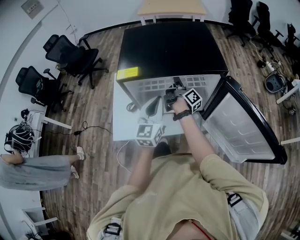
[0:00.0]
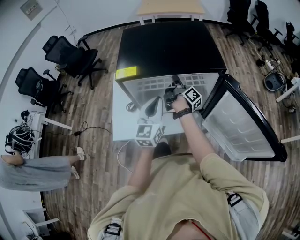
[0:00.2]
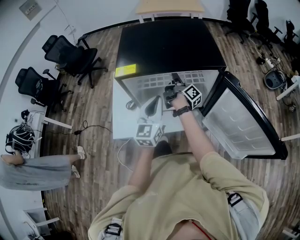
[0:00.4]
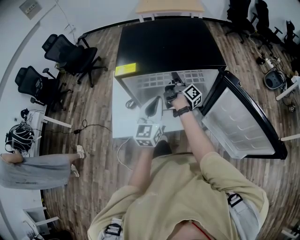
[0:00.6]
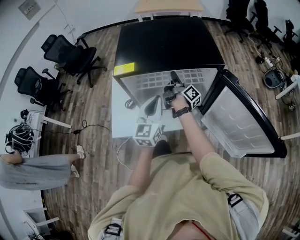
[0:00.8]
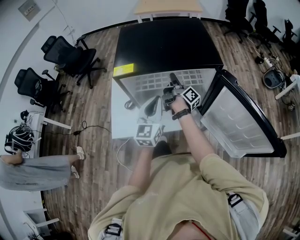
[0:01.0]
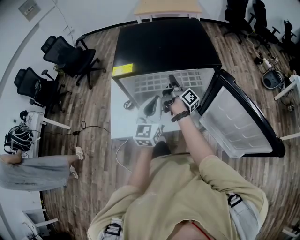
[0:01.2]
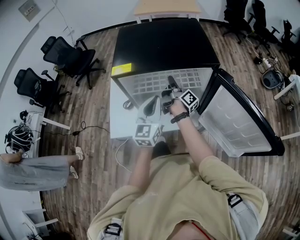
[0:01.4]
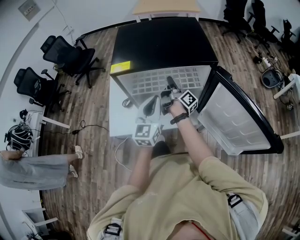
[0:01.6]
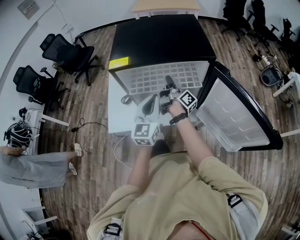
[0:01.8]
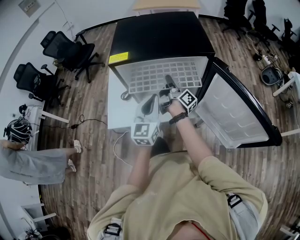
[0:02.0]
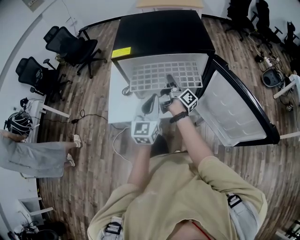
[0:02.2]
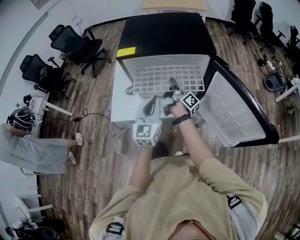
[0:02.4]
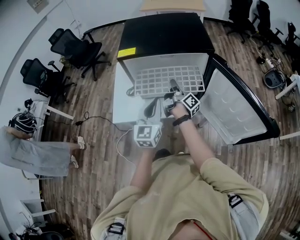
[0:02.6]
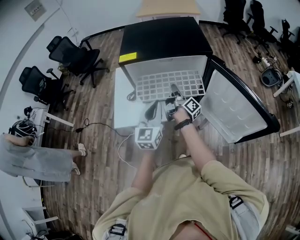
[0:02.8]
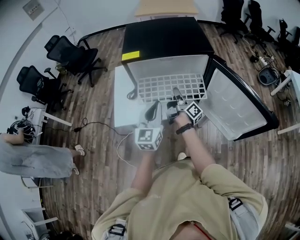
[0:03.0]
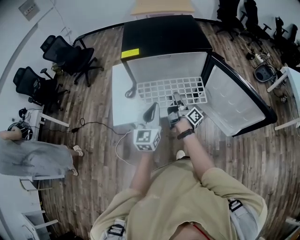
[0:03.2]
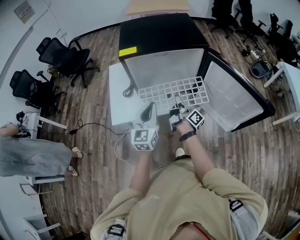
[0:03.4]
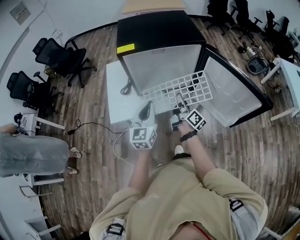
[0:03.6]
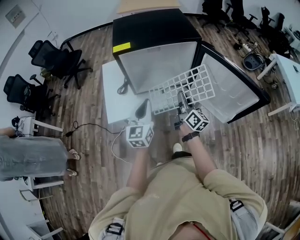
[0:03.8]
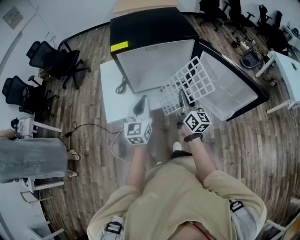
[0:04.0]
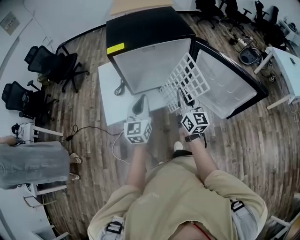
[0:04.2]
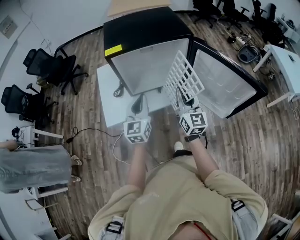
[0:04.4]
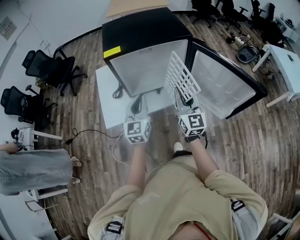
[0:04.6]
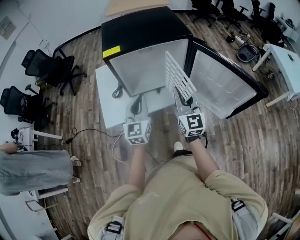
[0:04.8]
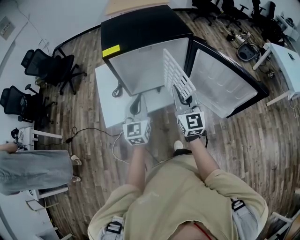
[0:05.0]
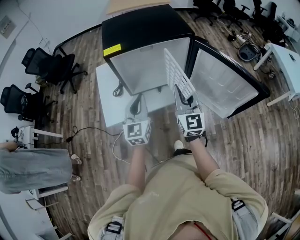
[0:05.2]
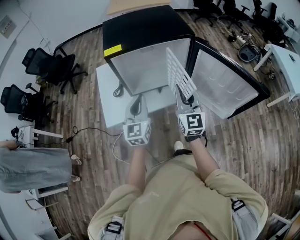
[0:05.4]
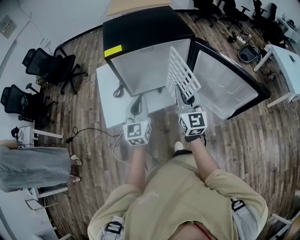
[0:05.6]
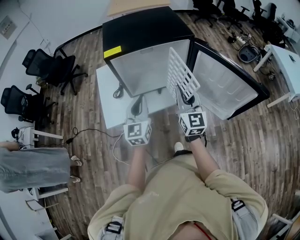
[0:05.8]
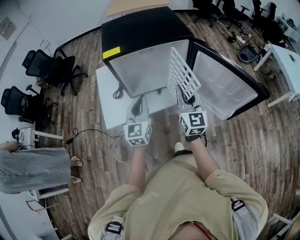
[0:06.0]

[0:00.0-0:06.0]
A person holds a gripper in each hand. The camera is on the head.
0:00.0 to 0:01.6: The right gripper shifts approximately 5 cm backward.
0:01.6 to 0:03.0: Both grippers travel together backward, some 15 cm.
0:03.0 to 0:04.4: The right gripper is displaced backward and upward by approximately 15 cm, and rolls counterclockwise, seen from behind, by some 80 degrees.
0:04.4 to 0:06.0: There are only small adjustments of the grippers.

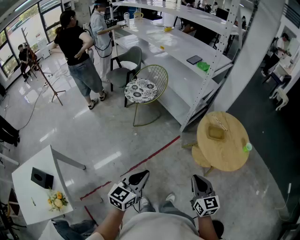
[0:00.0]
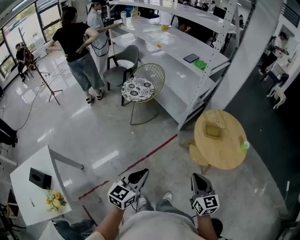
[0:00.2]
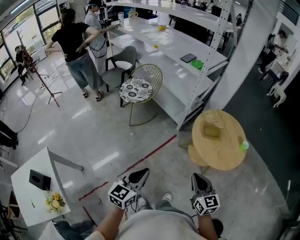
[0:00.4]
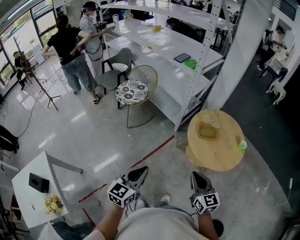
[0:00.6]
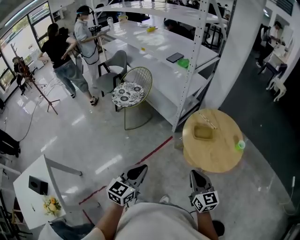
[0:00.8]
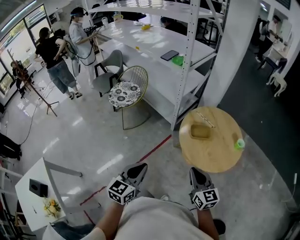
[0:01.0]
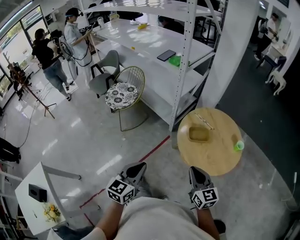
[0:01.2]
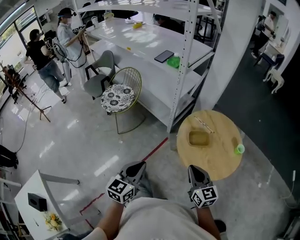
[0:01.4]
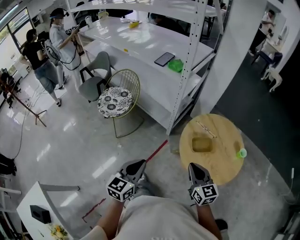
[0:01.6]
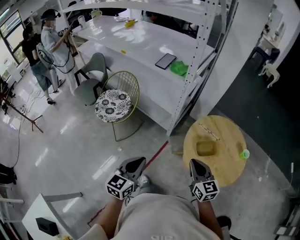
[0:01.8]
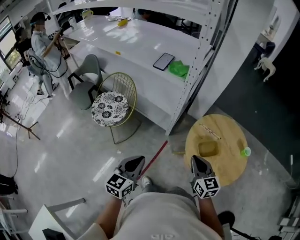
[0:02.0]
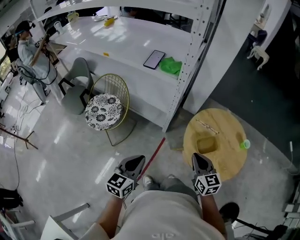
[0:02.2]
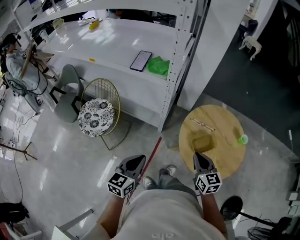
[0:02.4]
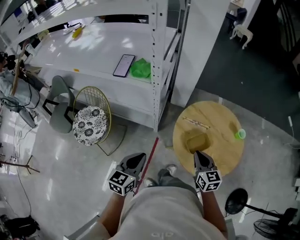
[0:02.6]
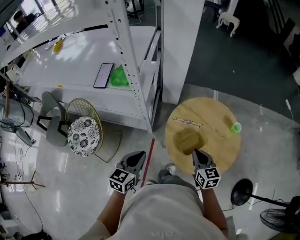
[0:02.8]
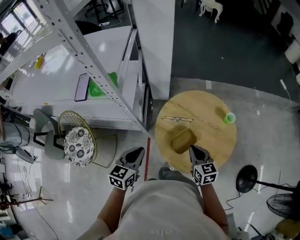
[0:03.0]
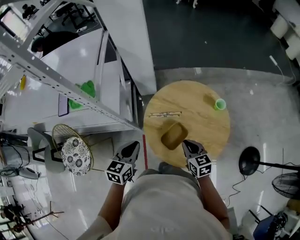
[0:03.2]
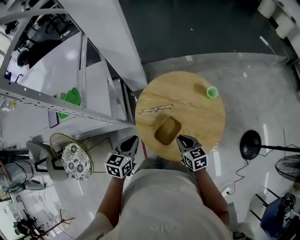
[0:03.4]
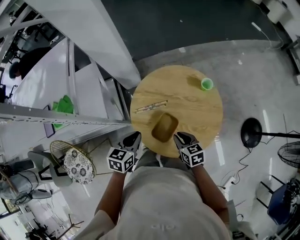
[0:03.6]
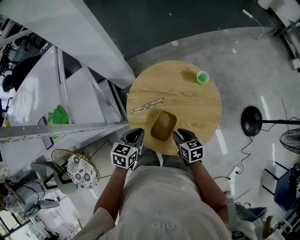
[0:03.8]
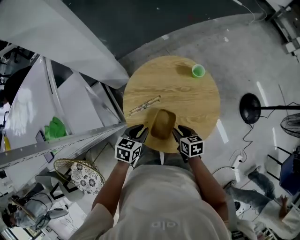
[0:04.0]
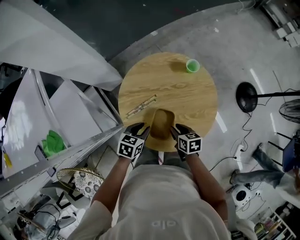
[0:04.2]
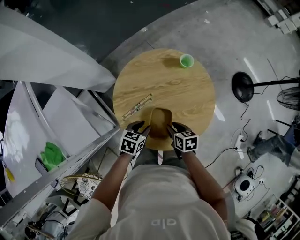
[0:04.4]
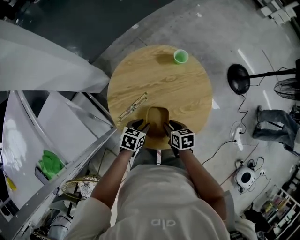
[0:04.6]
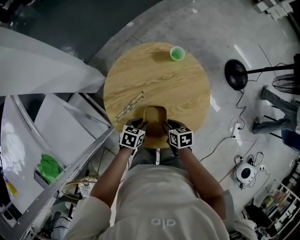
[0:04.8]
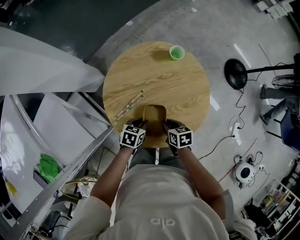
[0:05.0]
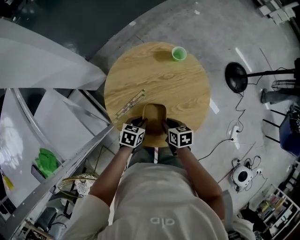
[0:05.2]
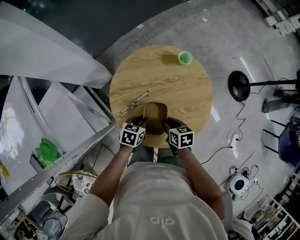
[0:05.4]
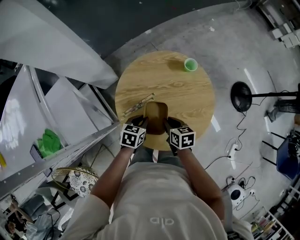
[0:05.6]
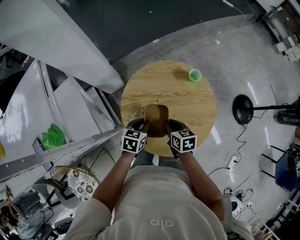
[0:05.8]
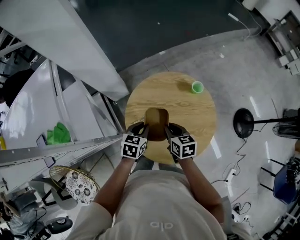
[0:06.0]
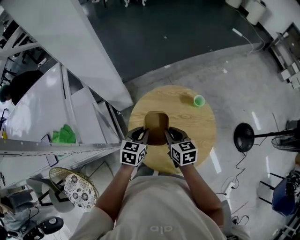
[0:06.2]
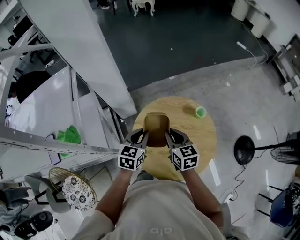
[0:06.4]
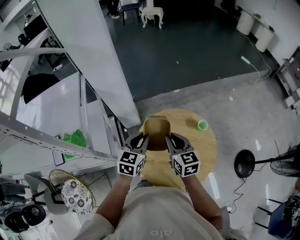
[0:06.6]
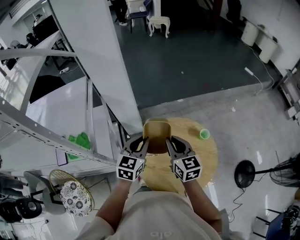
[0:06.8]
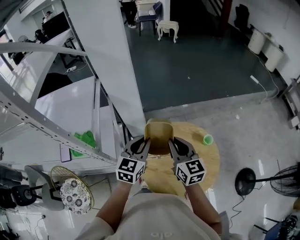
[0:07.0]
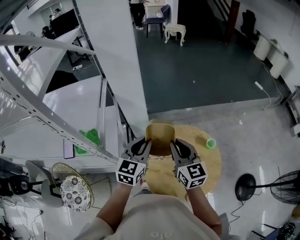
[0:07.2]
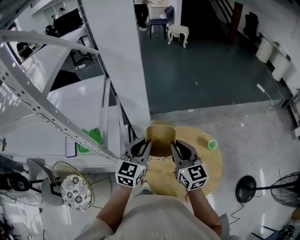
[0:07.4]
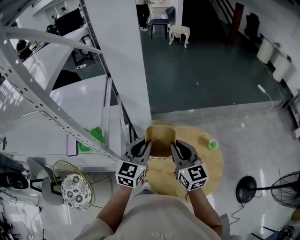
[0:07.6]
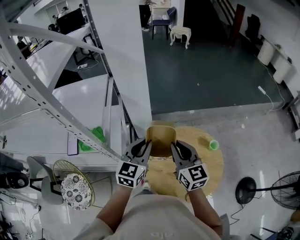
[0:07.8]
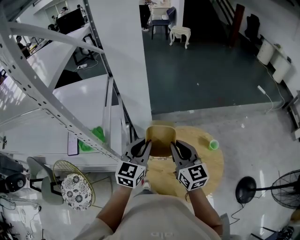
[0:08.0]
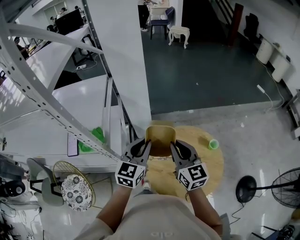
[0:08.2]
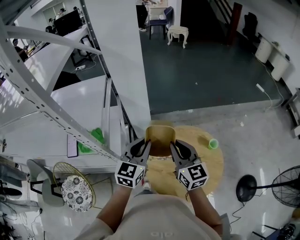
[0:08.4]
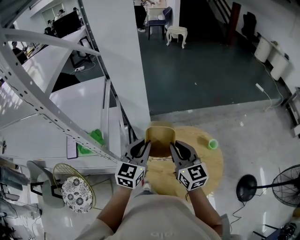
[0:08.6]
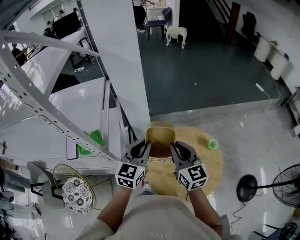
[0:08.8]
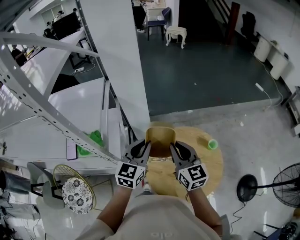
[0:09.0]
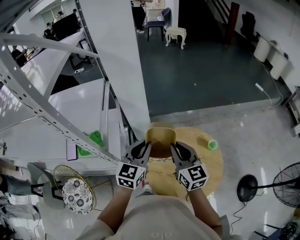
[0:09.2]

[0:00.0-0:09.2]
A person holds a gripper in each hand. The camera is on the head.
0:00.0 to 0:01.6: The grippers both shift forward by some 30 cm.
0:01.6 to 0:03.0: The right gripper changes place by roughly 25 cm, and changes its angle by about 40 degrees. The left gripper changes place by some 35 cm, and changes its angle by roughly 40 degrees.
0:03.0 to 0:04.6: Both grippers move downward, about 20 cm. The right gripper twists roughly 50 degrees clockwise, seen from behind, and opens its fingers. The left gripper changes its angle by approximately 60 degrees, and opens.
0:04.6 to 0:06.2: The left gripper goes some 20 cm upward, and changes its angle by roughly 40 degrees, while the right gripper travels upward, forward and to the left by roughly 20 cm, and changes its angle by about 30 degrees.
0:06.2 to 0:07.6: The right gripper shifts approximately 20 cm upward, and swivels some 30 degrees. Meanwhile the left gripper shifts about 25 cm upward and to the left, and rotates approximately 30 degrees.
0:07.6 to 0:09.2: Neither gripper changes place.

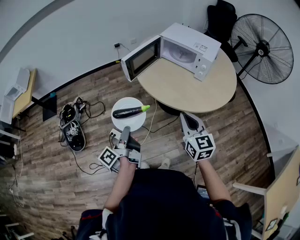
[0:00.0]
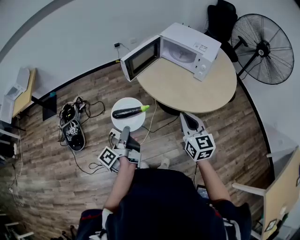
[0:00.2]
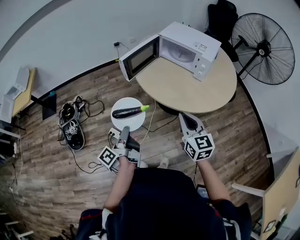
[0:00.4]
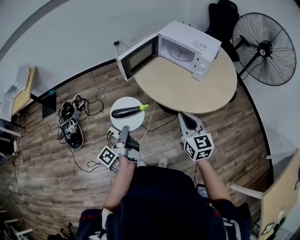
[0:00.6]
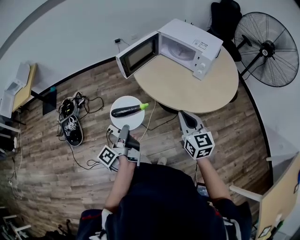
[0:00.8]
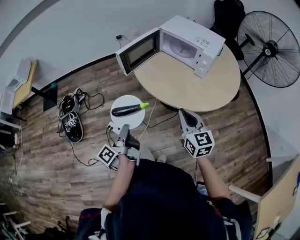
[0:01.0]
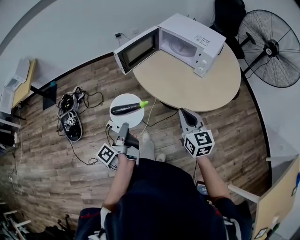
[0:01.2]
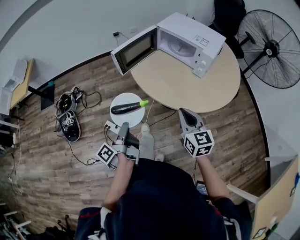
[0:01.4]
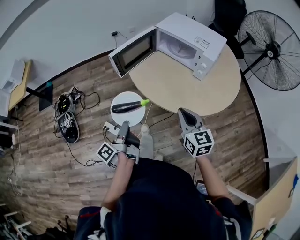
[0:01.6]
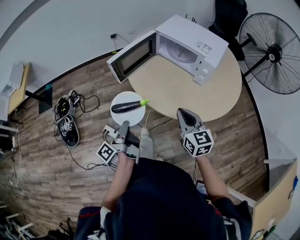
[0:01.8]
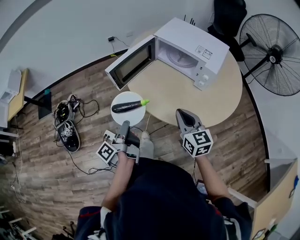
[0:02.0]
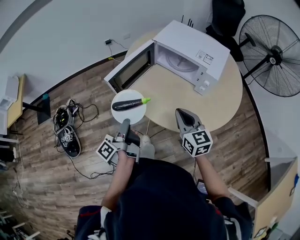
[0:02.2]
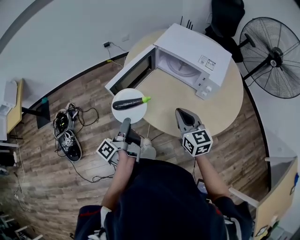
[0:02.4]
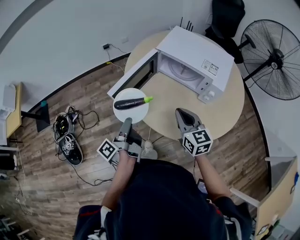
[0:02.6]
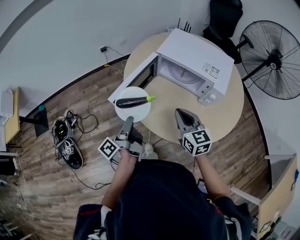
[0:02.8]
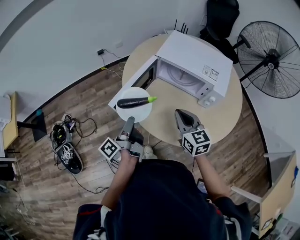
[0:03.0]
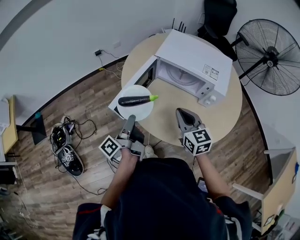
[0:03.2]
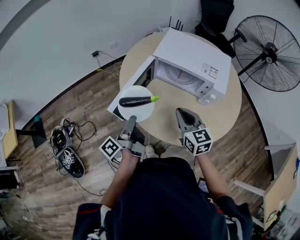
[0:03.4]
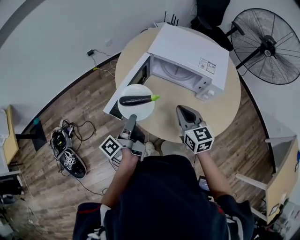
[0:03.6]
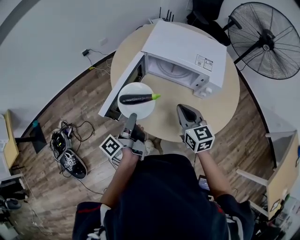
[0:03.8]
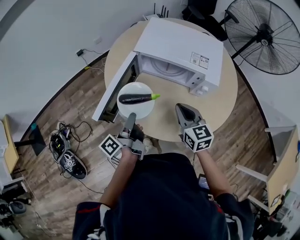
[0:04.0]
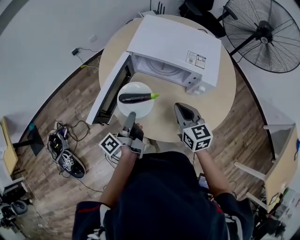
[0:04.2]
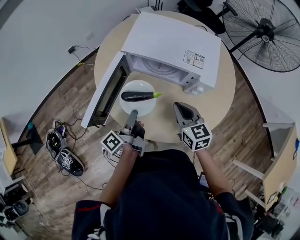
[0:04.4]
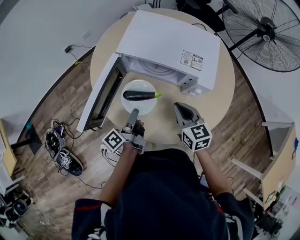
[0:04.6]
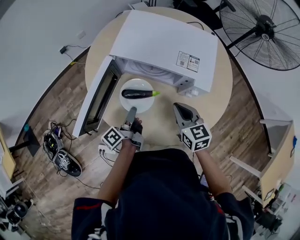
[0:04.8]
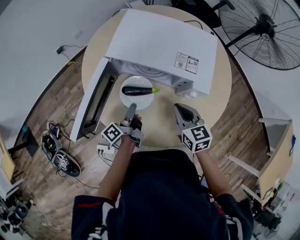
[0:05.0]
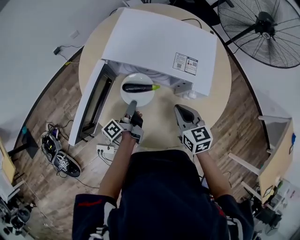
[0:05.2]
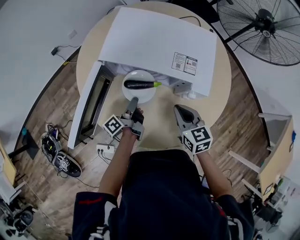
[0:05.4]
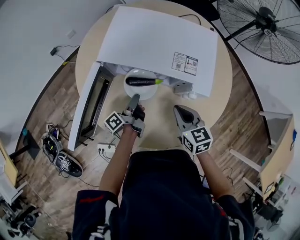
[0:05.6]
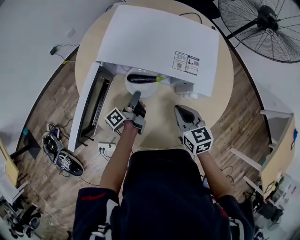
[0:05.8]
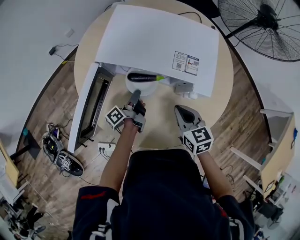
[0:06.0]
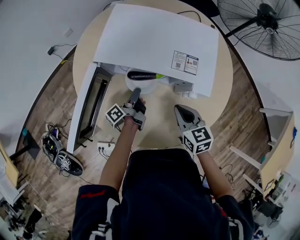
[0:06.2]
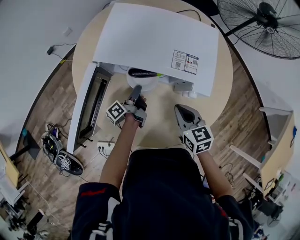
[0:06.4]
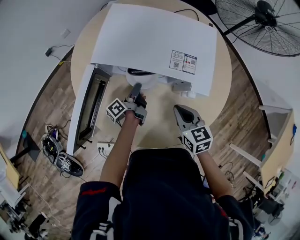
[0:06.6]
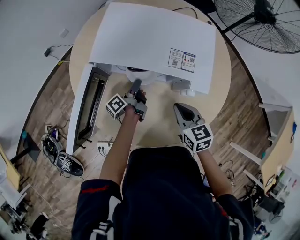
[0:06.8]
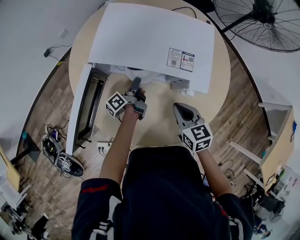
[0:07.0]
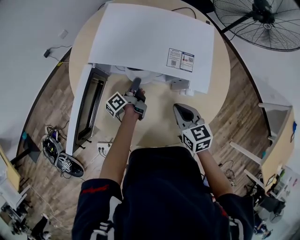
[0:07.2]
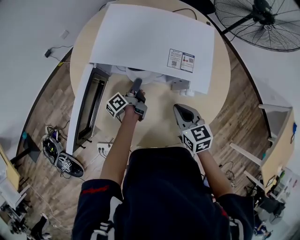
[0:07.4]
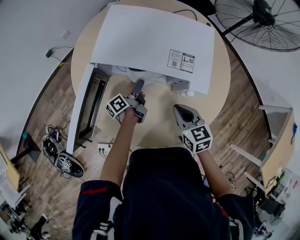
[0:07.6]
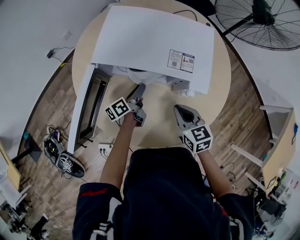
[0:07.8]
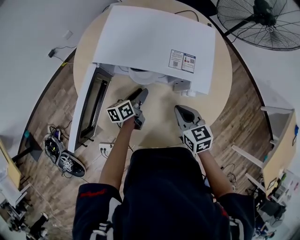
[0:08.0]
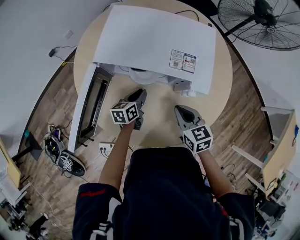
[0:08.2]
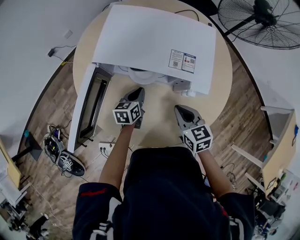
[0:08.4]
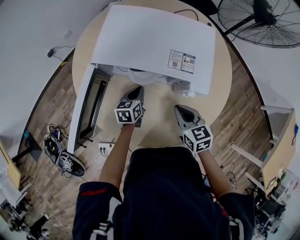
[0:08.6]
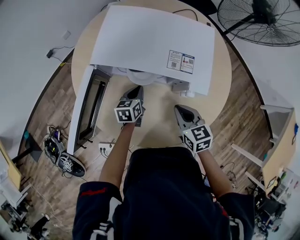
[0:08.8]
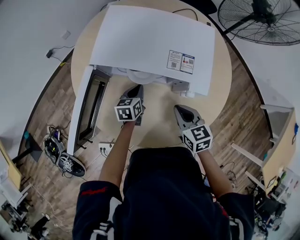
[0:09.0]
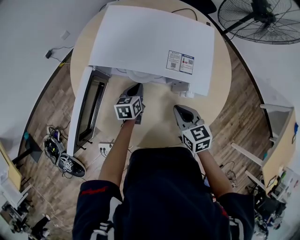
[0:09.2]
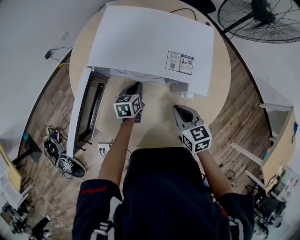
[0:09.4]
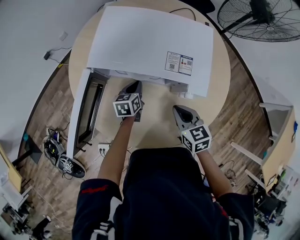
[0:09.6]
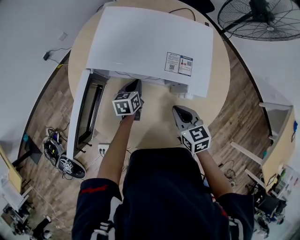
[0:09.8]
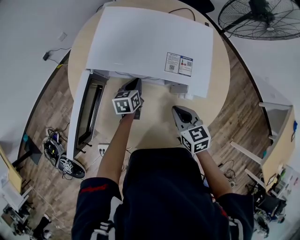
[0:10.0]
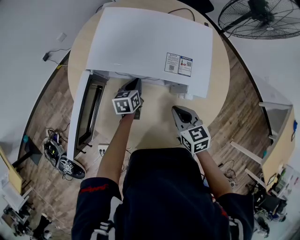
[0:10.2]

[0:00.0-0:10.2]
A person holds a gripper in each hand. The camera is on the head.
0:00.0 to 0:01.4: Both grippers move to the right, some 5 cm.
0:01.4 to 0:03.0: The two grippers go about 30 cm forward.
0:03.0 to 0:04.4: Both grippers move to the right, forward and downward, roughly 15 cm.
0:04.4 to 0:05.8: The left gripper goes some 20 cm forward, downward and to the right. Meanwhile the right gripper goes approximately 10 cm to the right and downward.
0:05.8 to 0:07.2: The left gripper shifts roughly 5 cm forward.
0:07.2 to 0:08.8: The left gripper rotates around the line of its fingers by some 60 degrees, clockwise from behind, and opens and closes again.
0:08.8 to 0:10.2: The grippers make only small movements.
